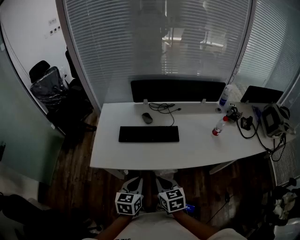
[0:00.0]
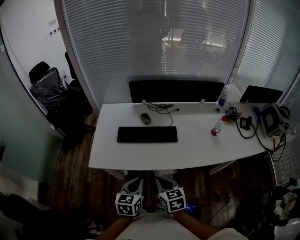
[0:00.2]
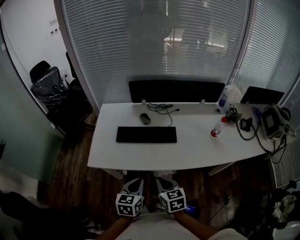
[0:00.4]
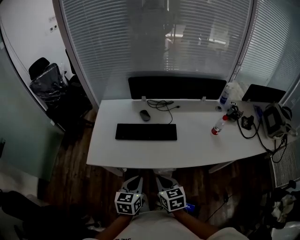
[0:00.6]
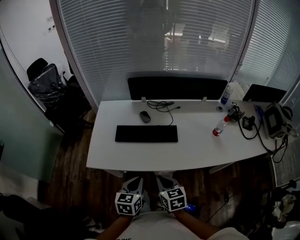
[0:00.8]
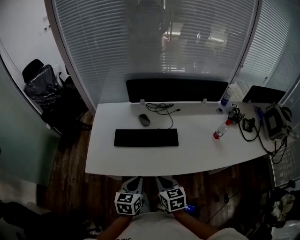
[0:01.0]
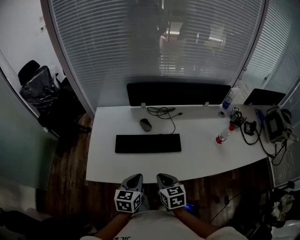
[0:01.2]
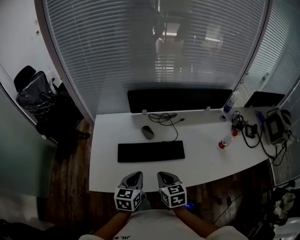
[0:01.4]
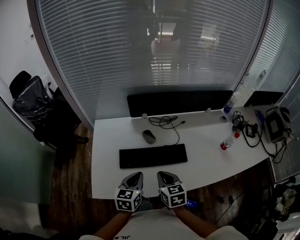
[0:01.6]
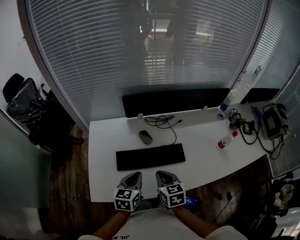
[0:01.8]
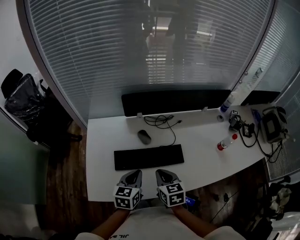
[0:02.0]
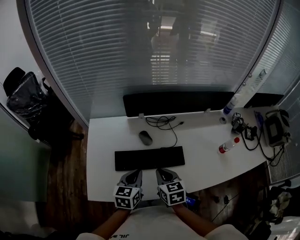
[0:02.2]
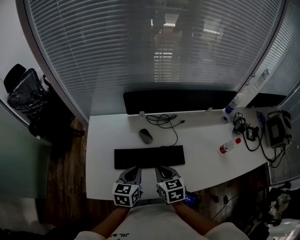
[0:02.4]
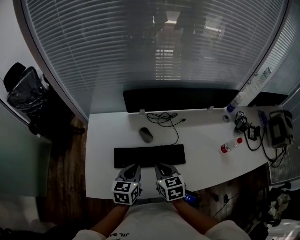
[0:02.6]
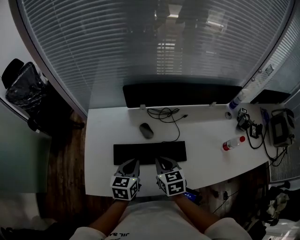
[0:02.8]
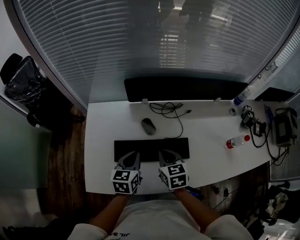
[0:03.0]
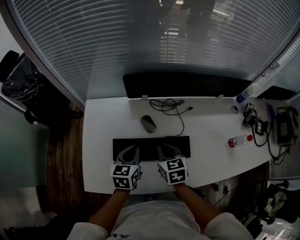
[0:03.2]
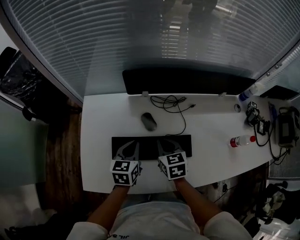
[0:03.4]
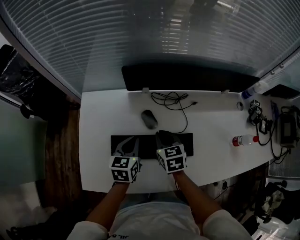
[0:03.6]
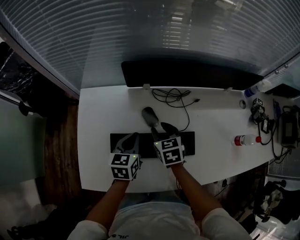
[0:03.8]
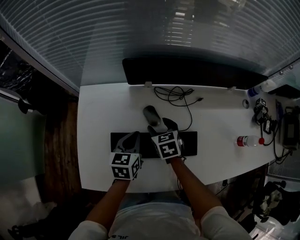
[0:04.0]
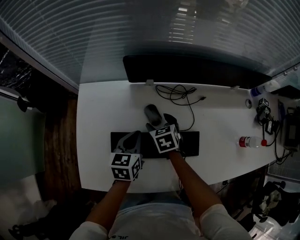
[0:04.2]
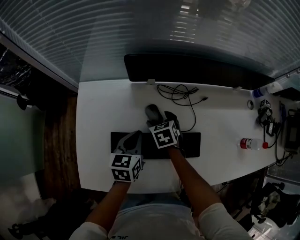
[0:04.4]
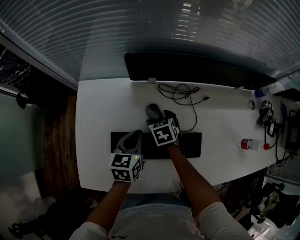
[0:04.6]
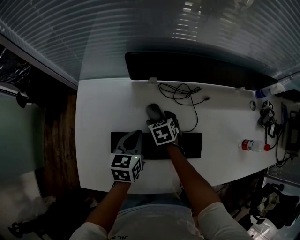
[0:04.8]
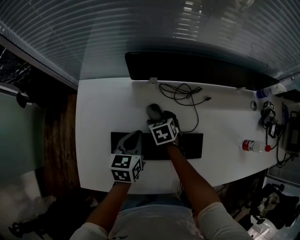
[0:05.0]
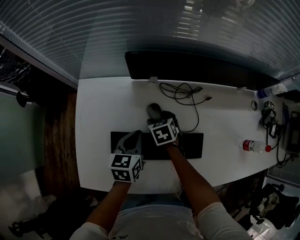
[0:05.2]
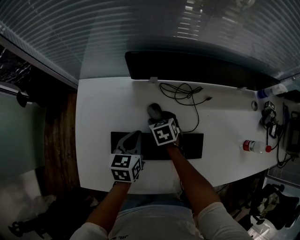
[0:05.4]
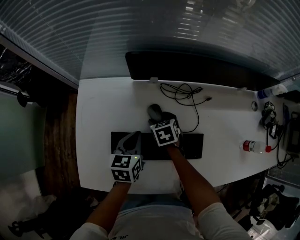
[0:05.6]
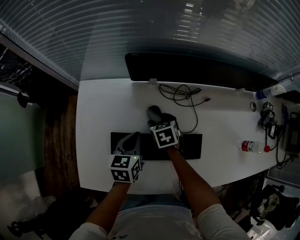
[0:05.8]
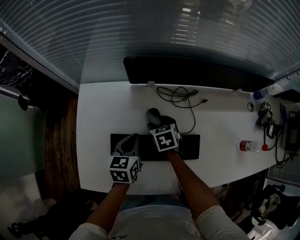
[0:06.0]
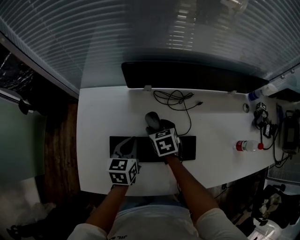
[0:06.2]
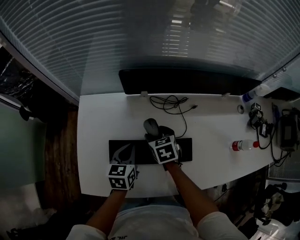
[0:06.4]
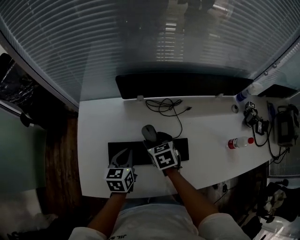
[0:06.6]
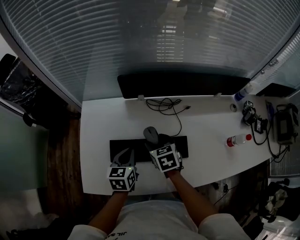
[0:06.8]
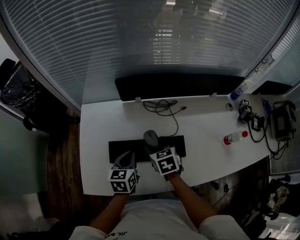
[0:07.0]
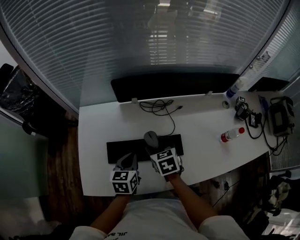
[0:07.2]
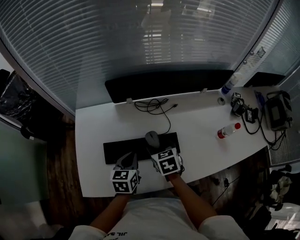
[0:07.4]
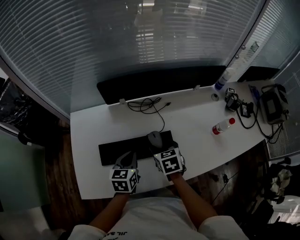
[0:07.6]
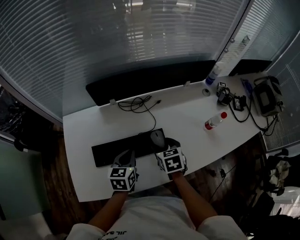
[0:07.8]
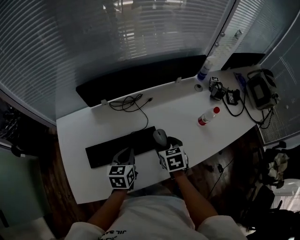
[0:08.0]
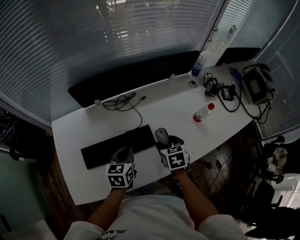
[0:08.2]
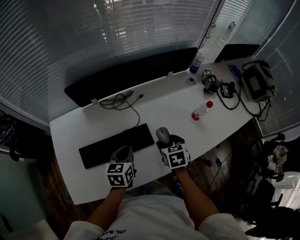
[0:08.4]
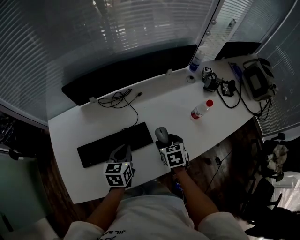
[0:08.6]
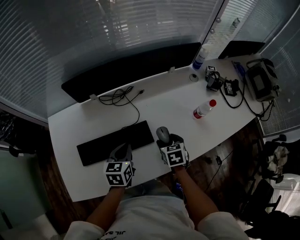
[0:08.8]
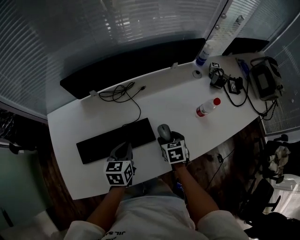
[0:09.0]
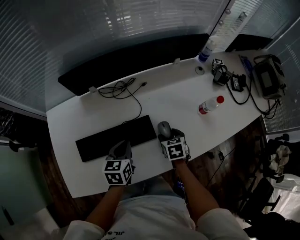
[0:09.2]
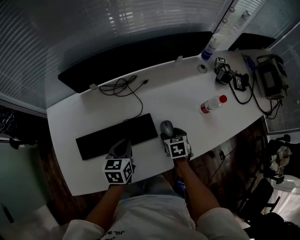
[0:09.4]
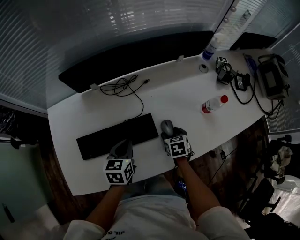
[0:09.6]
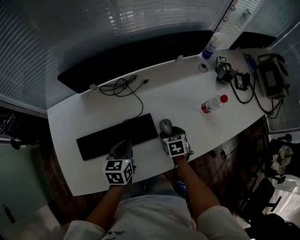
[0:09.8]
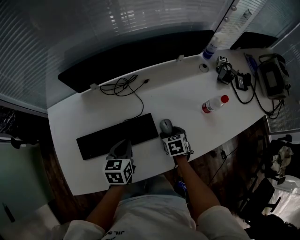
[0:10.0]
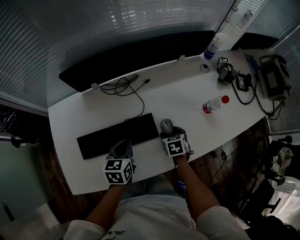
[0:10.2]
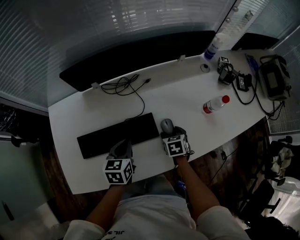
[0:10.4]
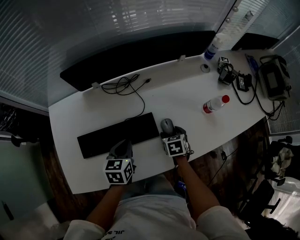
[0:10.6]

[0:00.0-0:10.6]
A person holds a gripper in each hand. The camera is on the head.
0:00.0 to 0:01.6: The two grippers go about 20 cm forward.
0:01.6 to 0:03.0: The grippers both shift forward by roughly 10 cm.
0:03.0 to 0:04.6: The right gripper goes roughly 25 cm downward and forward, rotates approximately 20 degrees, and opens up. The left gripper shifts some 10 cm forward and downward.
0:04.6 to 0:06.0: There are only small adjustments of the grippers.
0:06.0 to 0:07.6: The left gripper is displaced backward, to the right and upward by roughly 15 cm. Meanwhile the right gripper moves backward, to the right and upward, about 20 cm.
0:07.6 to 0:09.0: The right gripper travels to the right and downward by about 20 cm. The left gripper is displaced to the right by some 10 cm.
0:09.0 to 0:10.6: The right gripper changes place by approximately 5 cm.

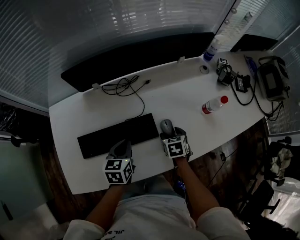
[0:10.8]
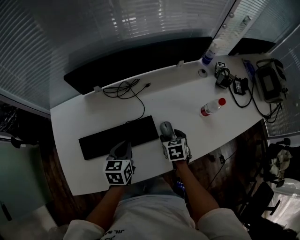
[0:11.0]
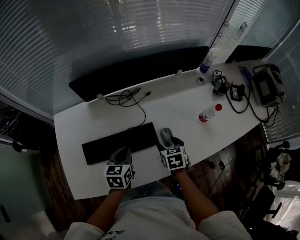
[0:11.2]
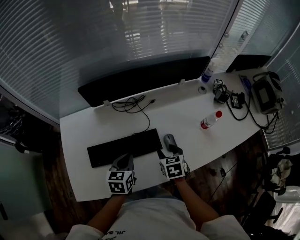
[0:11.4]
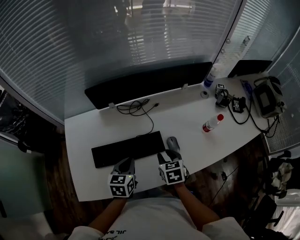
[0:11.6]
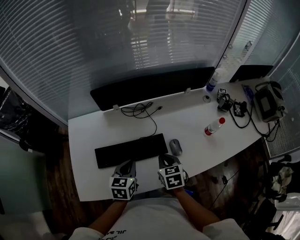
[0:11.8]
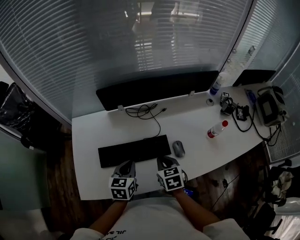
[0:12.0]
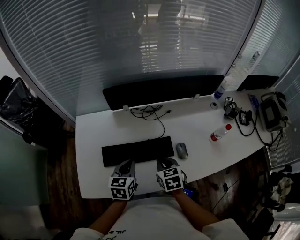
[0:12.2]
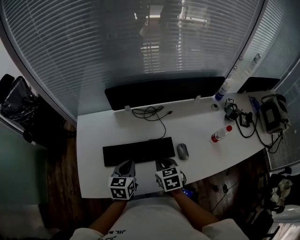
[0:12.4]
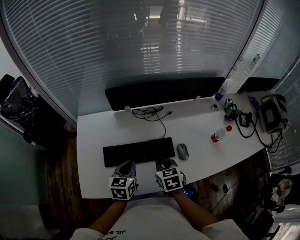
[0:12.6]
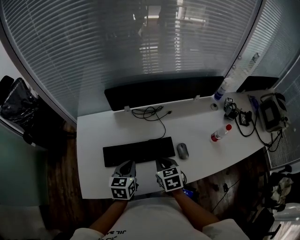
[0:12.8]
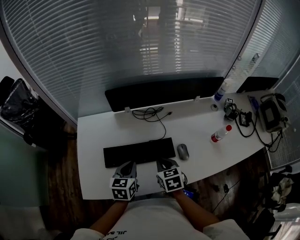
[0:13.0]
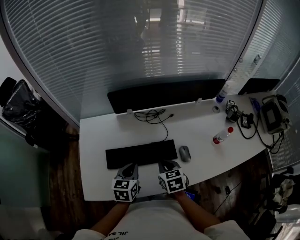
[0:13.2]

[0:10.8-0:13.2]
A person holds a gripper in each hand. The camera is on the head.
0:10.8 to 0:12.0: The right gripper heads upward, to the left and backward, covering about 20 cm, and closes its fingers, while the left gripper goes roughly 10 cm to the left, upward and backward.
0:12.0 to 0:13.2: The grippers stay close to where they were, moving slightly.

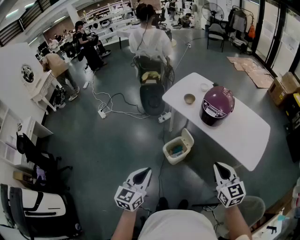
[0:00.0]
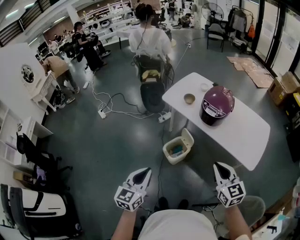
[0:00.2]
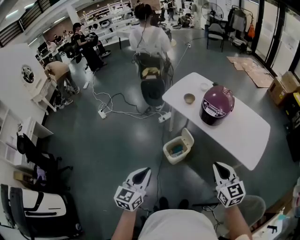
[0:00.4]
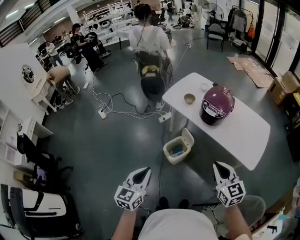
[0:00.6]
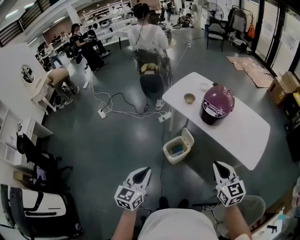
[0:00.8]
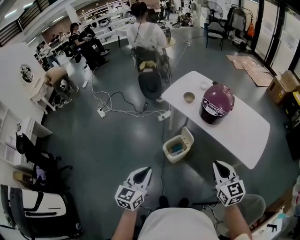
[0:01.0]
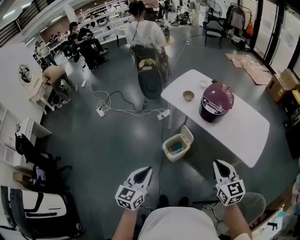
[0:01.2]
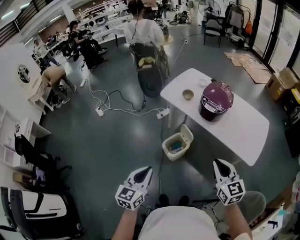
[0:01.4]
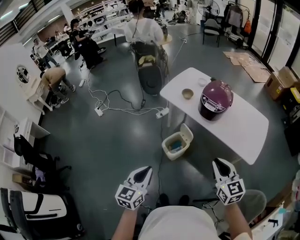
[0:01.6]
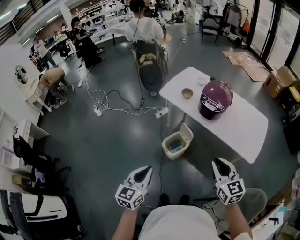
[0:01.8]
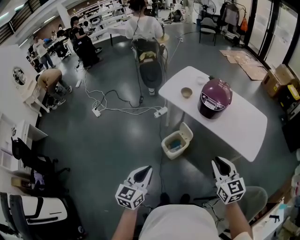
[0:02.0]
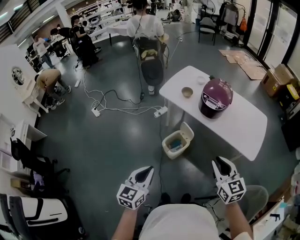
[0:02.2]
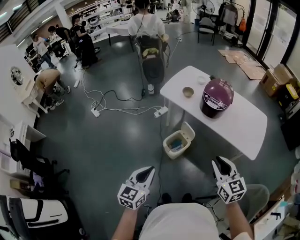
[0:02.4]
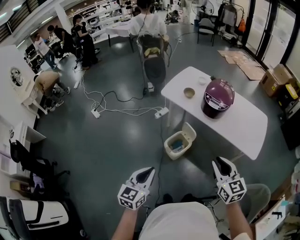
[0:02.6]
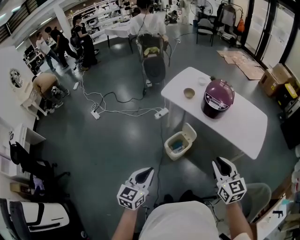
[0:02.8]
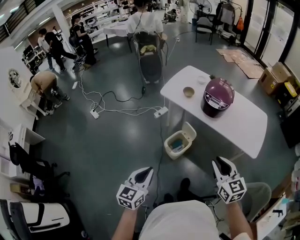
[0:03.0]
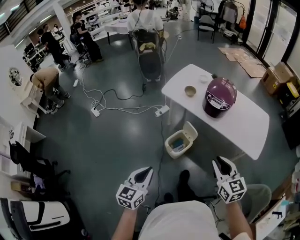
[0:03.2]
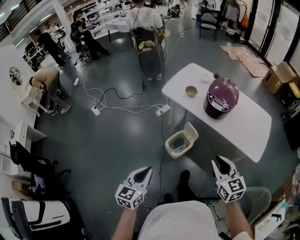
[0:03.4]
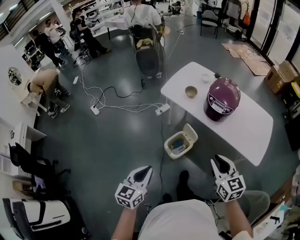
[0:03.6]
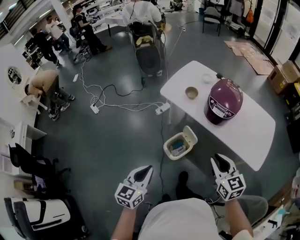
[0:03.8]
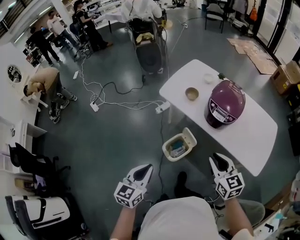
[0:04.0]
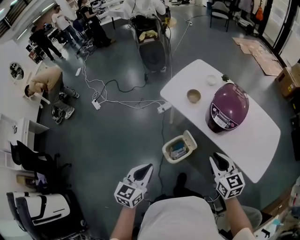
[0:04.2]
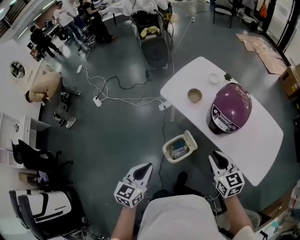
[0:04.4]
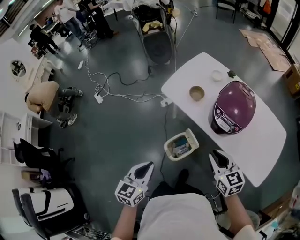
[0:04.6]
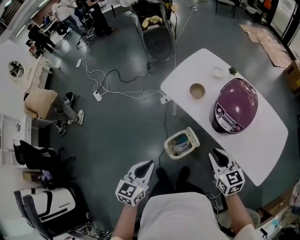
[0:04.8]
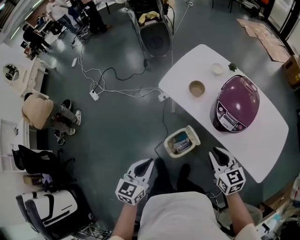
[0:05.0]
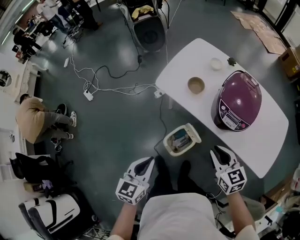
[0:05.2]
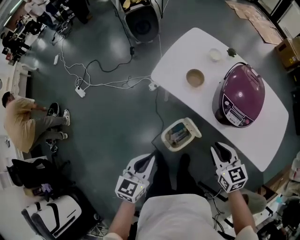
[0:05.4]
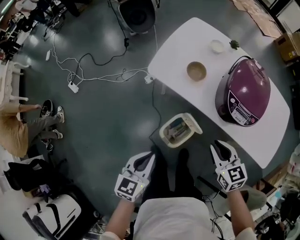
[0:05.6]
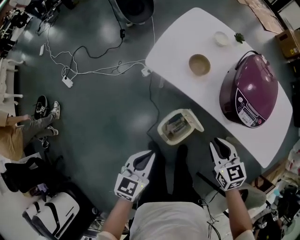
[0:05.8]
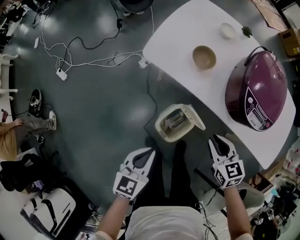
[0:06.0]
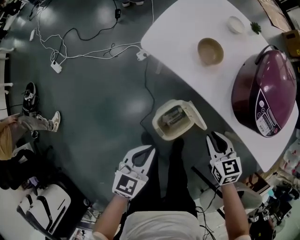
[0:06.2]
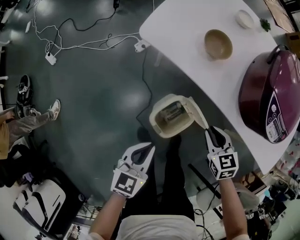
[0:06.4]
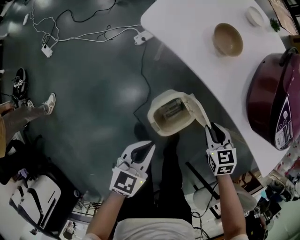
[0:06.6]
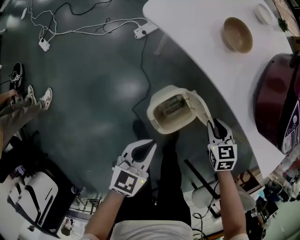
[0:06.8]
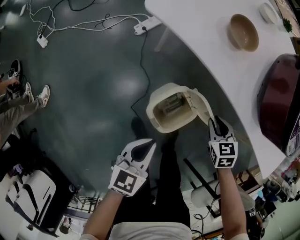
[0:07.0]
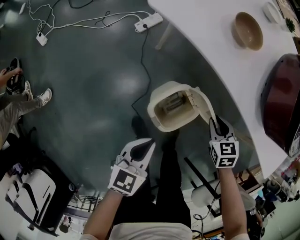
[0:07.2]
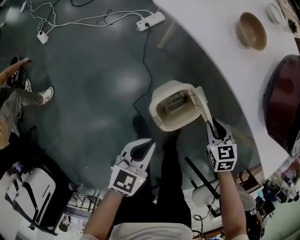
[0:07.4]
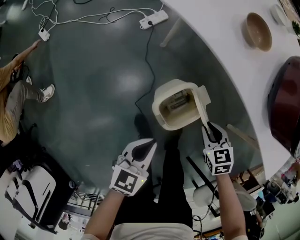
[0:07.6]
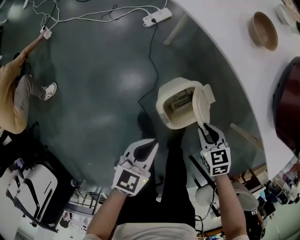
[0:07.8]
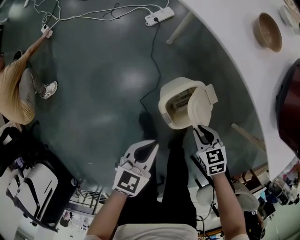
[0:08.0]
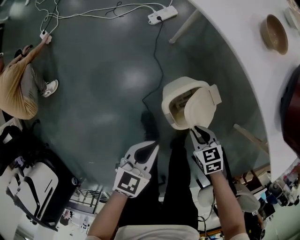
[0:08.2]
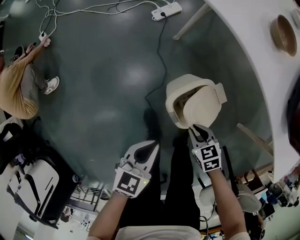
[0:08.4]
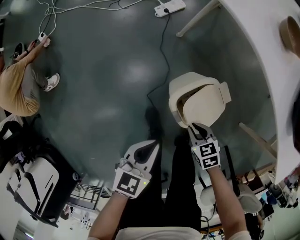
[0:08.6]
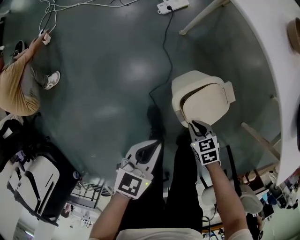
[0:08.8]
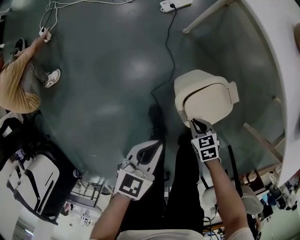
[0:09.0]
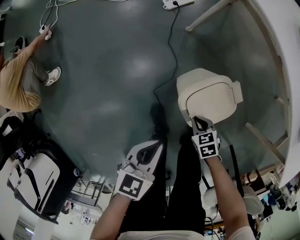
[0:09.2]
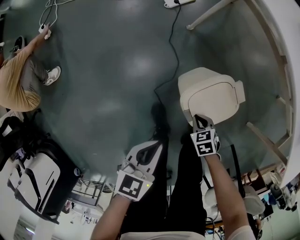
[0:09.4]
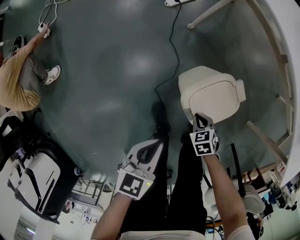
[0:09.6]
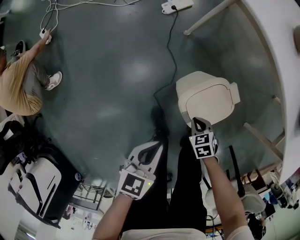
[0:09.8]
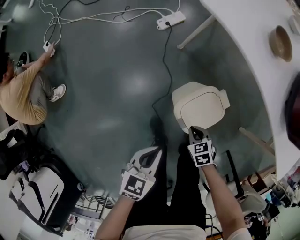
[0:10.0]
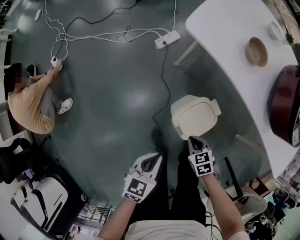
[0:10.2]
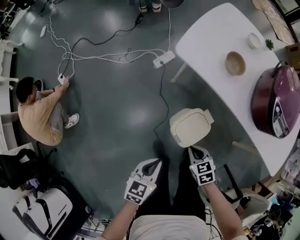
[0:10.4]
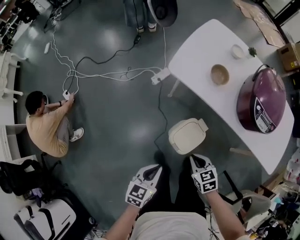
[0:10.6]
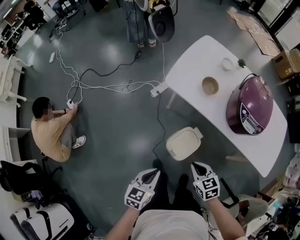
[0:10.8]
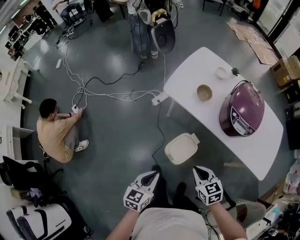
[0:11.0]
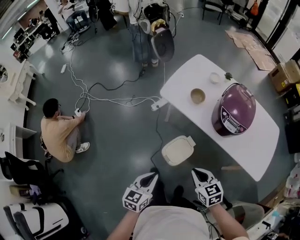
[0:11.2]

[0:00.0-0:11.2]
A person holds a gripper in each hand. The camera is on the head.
0:00.0 to 0:01.6: The grippers move only a little.
0:01.6 to 0:03.2: The two grippers go roughly 5 cm to the left.
0:03.2 to 0:04.8: The grippers both shift forward by about 25 cm.
0:04.8 to 0:06.4: The left gripper is displaced downward and forward by about 30 cm, and rotates some 20 degrees; the right gripper shifts some 35 cm downward, and changes its angle by roughly 20 degrees.
0:06.4 to 0:08.0: The left gripper is displaced downward and backward by about 15 cm, while the right gripper heads downward, backward and to the left, covering some 20 cm.
0:08.0 to 0:09.6: The left gripper shifts roughly 10 cm downward and to the left. Meanwhile the right gripper travels downward and to the left by approximately 20 cm.
0:09.6 to 0:11.2: The left gripper travels upward by roughly 40 cm; the right gripper is displaced upward by about 60 cm, and points its fingers some 30 degrees further upward.
